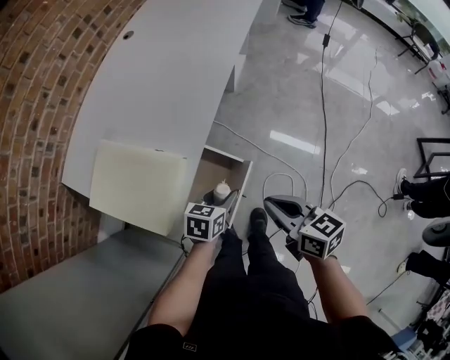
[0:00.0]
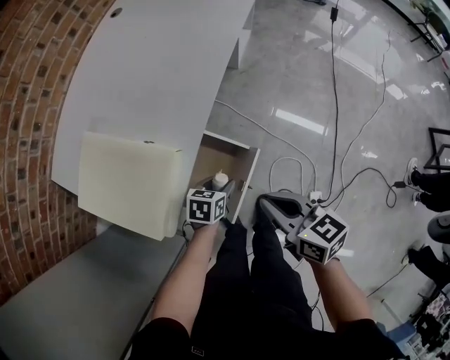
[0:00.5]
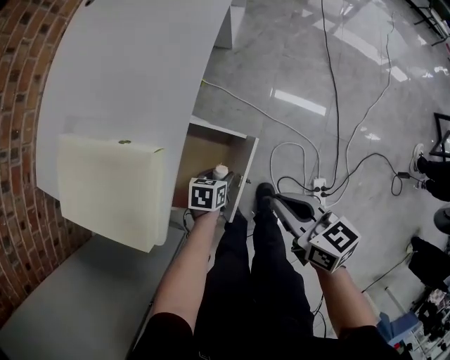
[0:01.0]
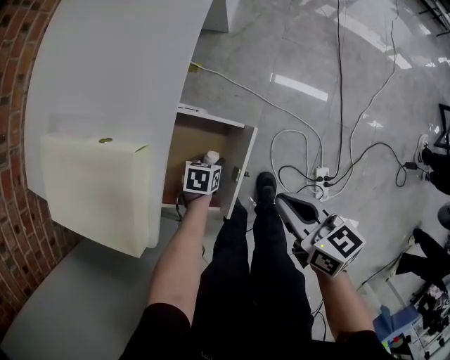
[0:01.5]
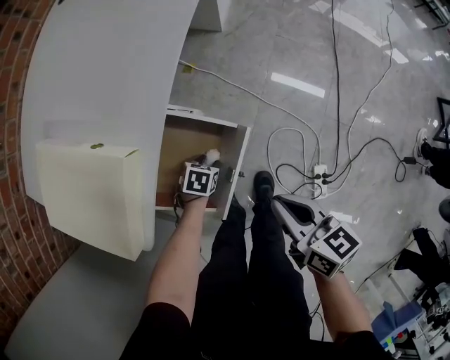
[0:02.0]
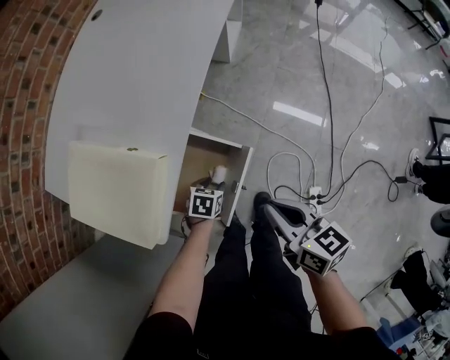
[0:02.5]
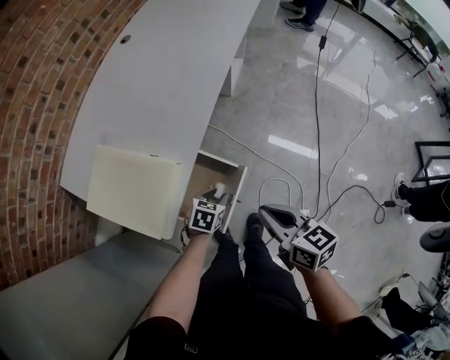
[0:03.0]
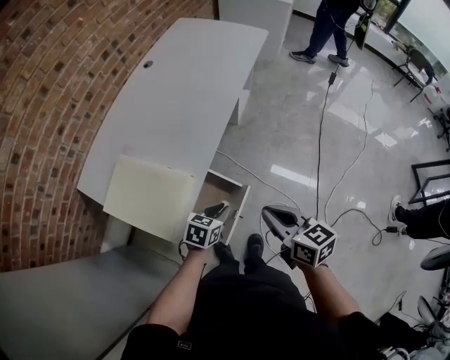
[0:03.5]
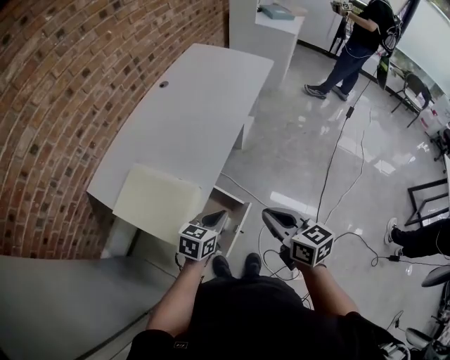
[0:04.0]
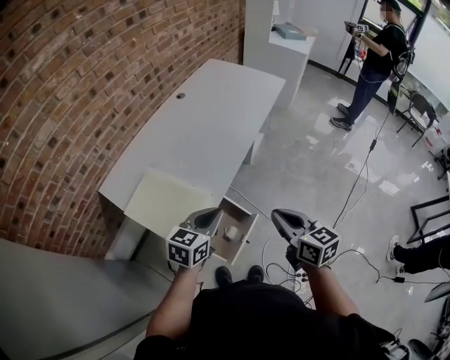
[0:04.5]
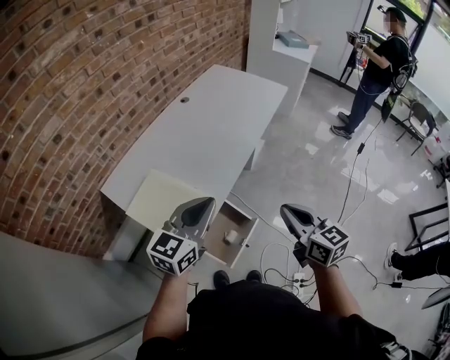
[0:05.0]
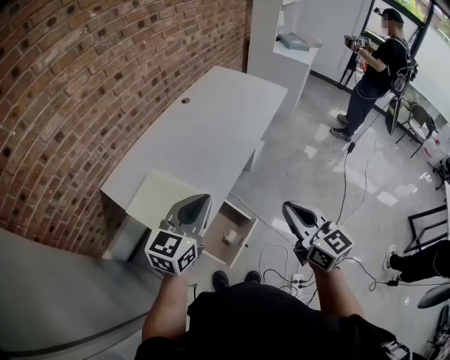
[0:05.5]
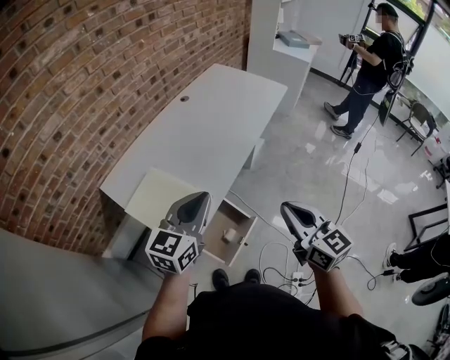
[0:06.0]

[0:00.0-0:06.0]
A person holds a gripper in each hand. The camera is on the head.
0:00.0 to 0:02.0: The left gripper shifts some 30 cm downward, and rotates roughly 30 degrees. The right gripper is displaced downward by about 15 cm.
0:02.0 to 0:04.0: The left gripper heads upward, covering roughly 40 cm, tilts its fingers roughly 40 degrees upward, and closes its fingers, while the right gripper moves upward, approximately 25 cm, and changes its angle by approximately 20 degrees.
0:04.0 to 0:06.0: The right gripper travels upward by some 10 cm, and rotates some 20 degrees. Meanwhile the left gripper travels upward by roughly 20 cm, and swivels roughly 30 degrees.

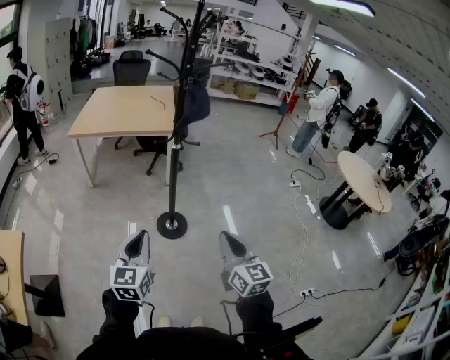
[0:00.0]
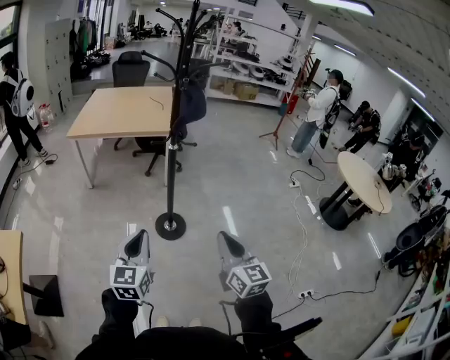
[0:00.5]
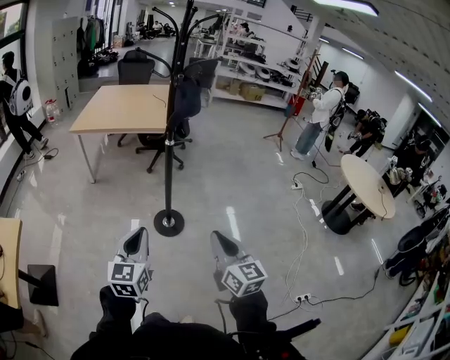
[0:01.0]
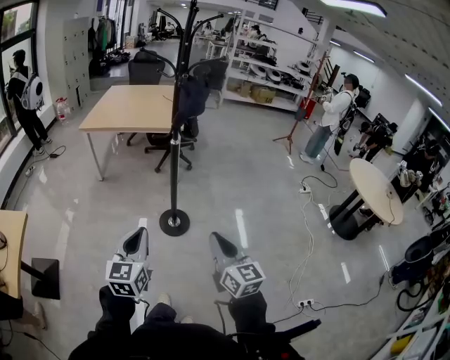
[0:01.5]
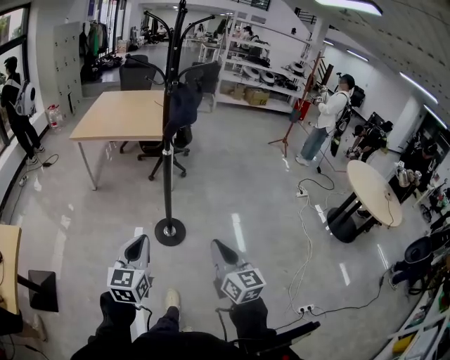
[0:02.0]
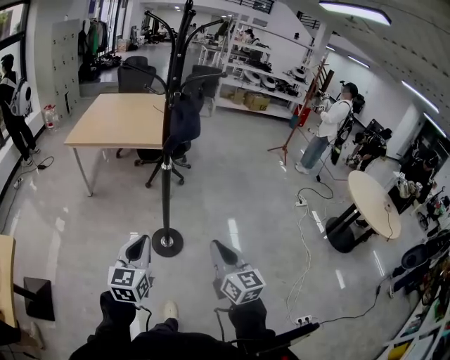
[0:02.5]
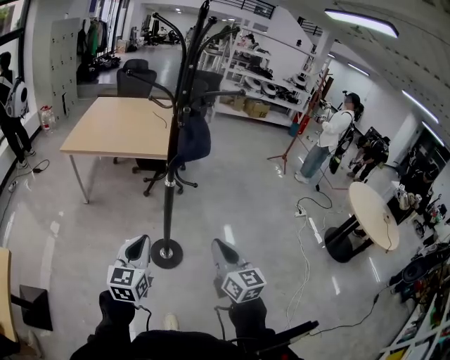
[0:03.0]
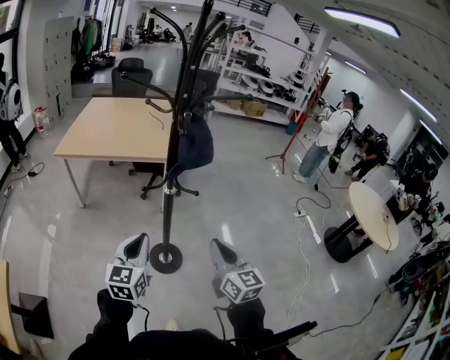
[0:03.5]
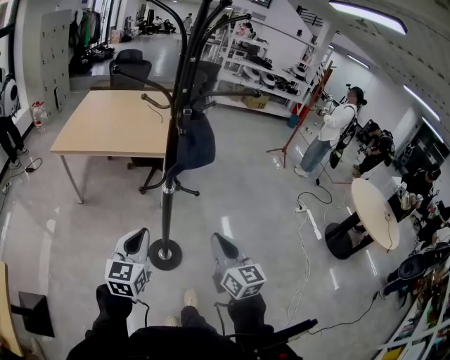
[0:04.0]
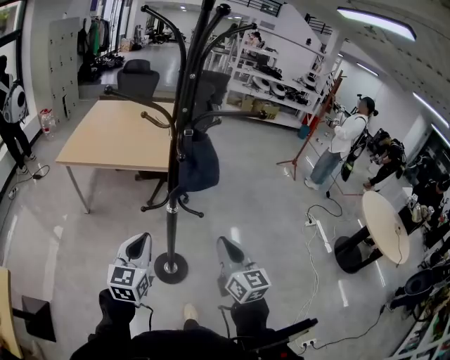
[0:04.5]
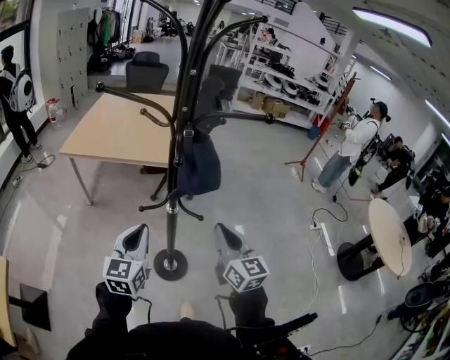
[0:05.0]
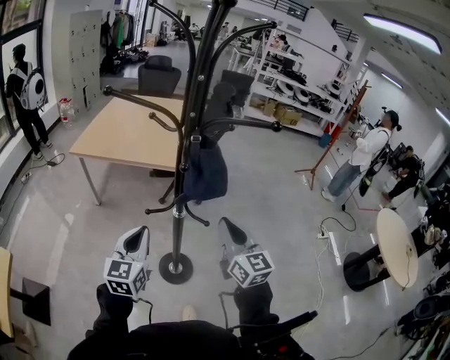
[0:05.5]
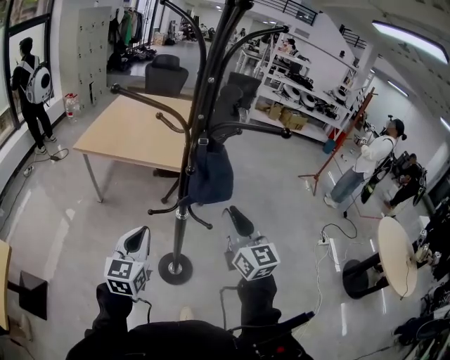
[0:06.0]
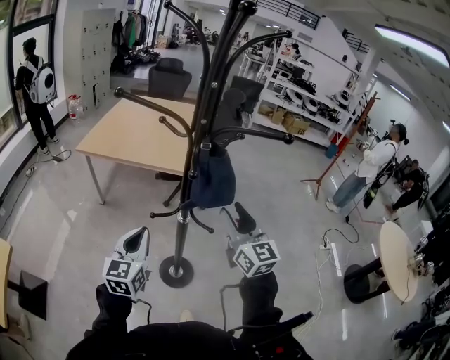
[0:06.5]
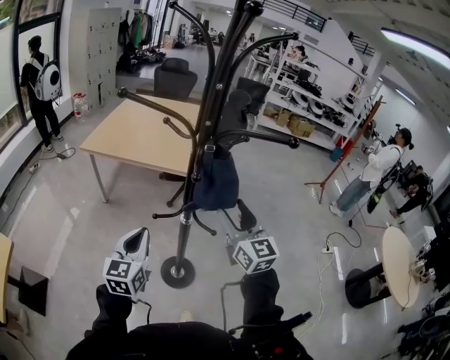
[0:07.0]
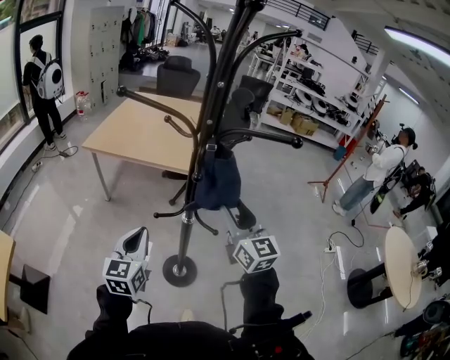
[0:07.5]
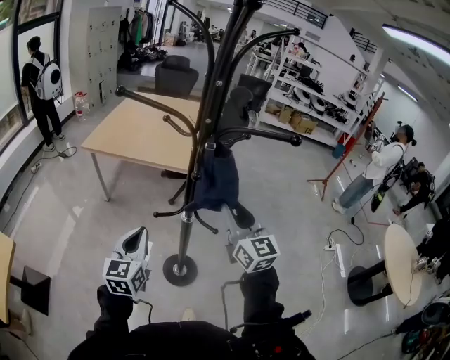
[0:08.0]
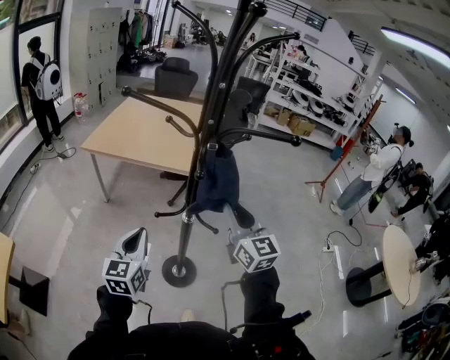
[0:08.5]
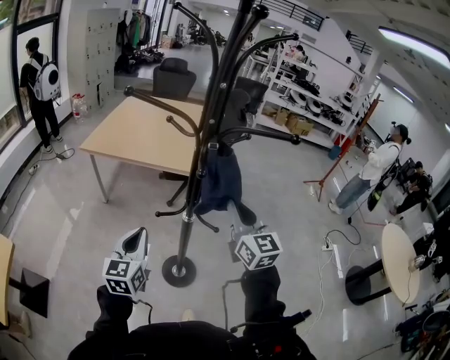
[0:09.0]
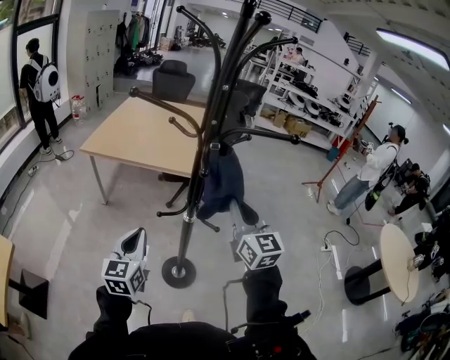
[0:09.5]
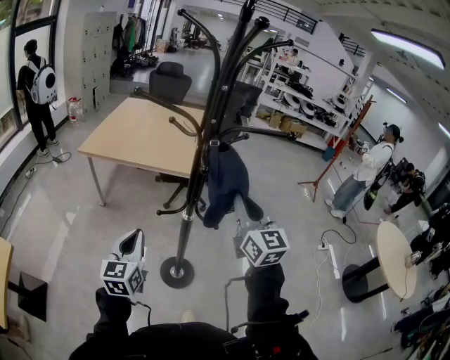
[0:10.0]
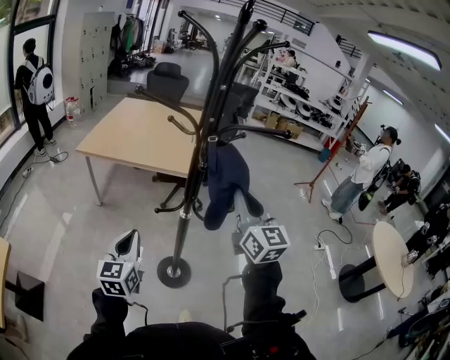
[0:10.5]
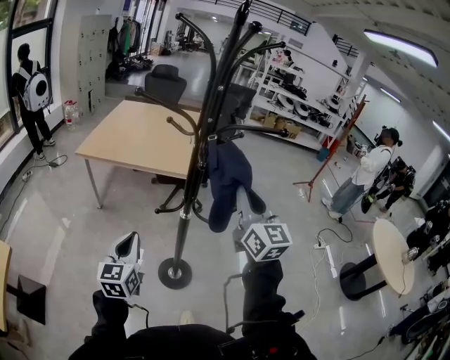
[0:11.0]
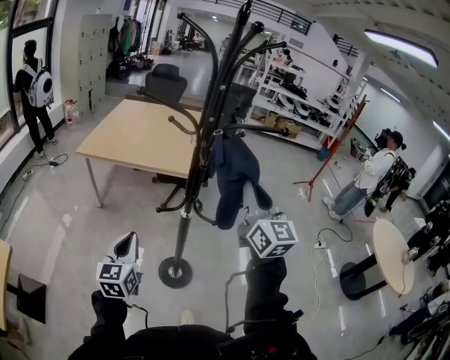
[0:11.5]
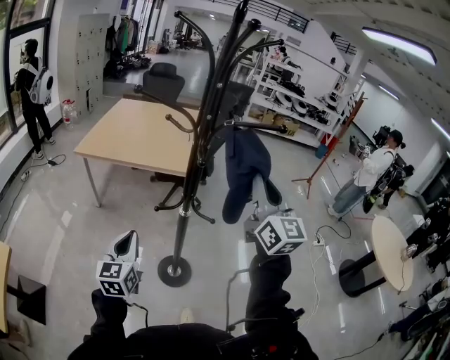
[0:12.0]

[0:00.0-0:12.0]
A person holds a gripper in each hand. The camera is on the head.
0:00.0 to 0:02.0: Both grippers travel together to the right, approximately 5 cm.
0:02.0 to 0:04.0: Both grippers move forward, approximately 25 cm.
0:04.0 to 0:06.0: The left gripper travels forward by approximately 10 cm. The right gripper moves forward and upward, approximately 20 cm.
0:06.0 to 0:08.0: The right gripper opens, then closes again.
0:08.0 to 0:10.0: The right gripper ends up some 5 cm from where it was.
0:10.0 to 0:12.0: The right gripper is displaced upward by roughly 10 cm.

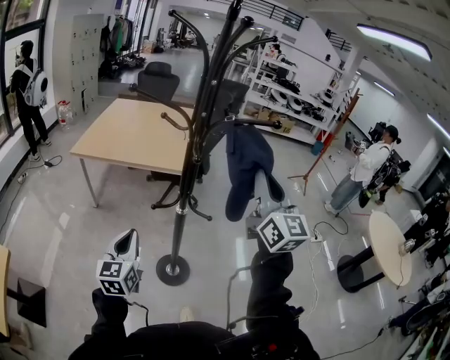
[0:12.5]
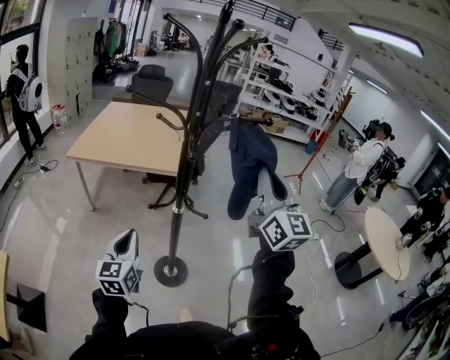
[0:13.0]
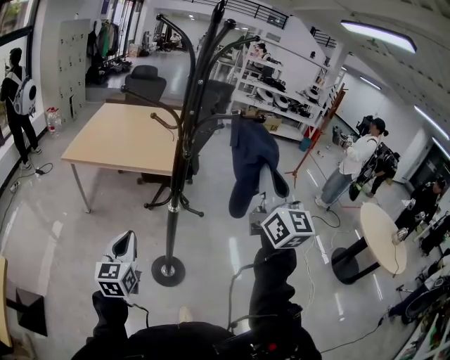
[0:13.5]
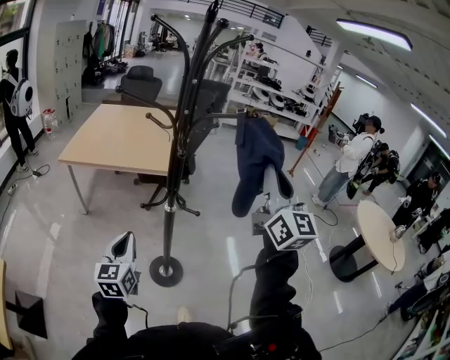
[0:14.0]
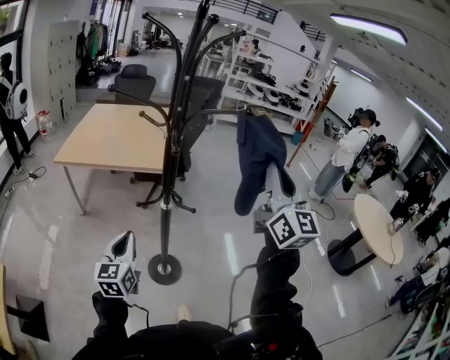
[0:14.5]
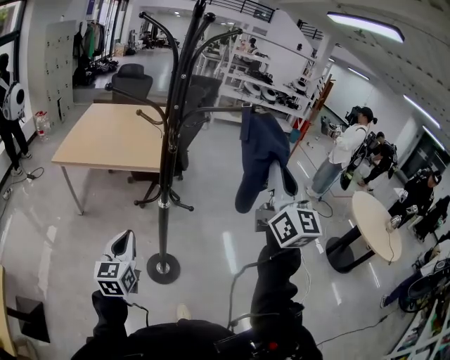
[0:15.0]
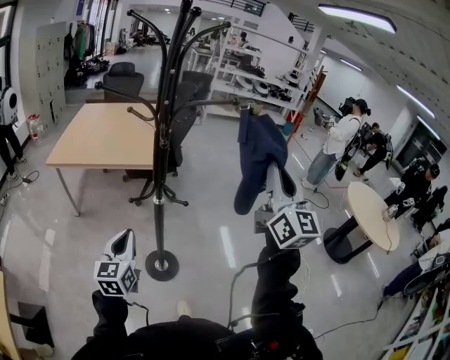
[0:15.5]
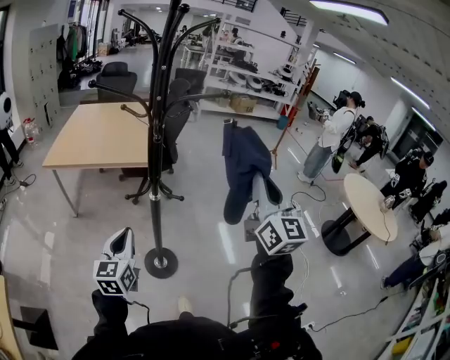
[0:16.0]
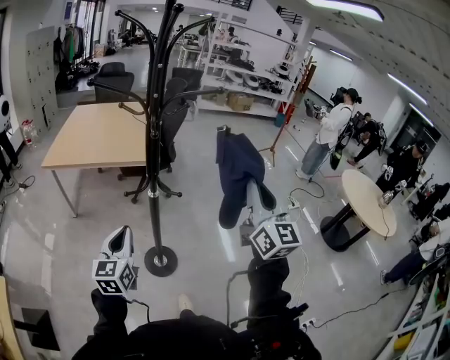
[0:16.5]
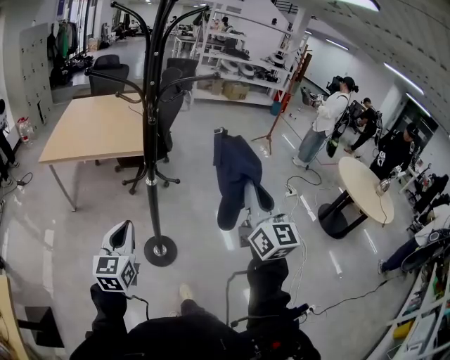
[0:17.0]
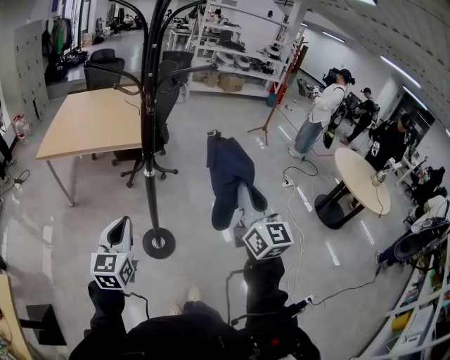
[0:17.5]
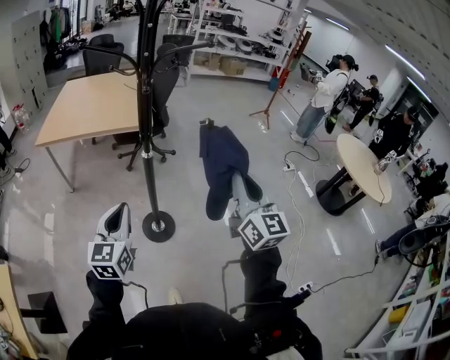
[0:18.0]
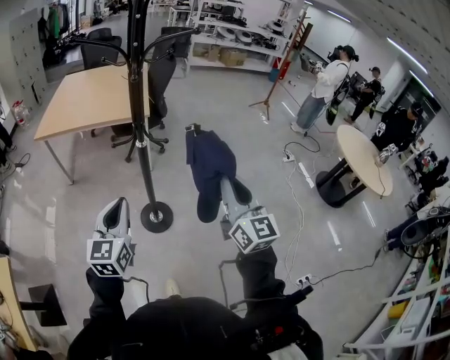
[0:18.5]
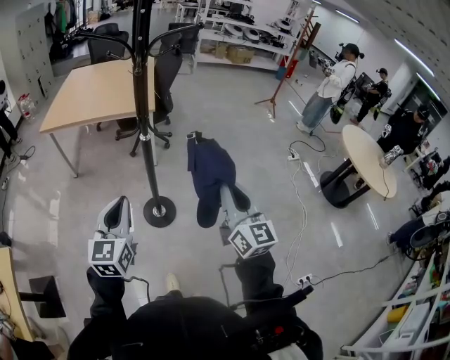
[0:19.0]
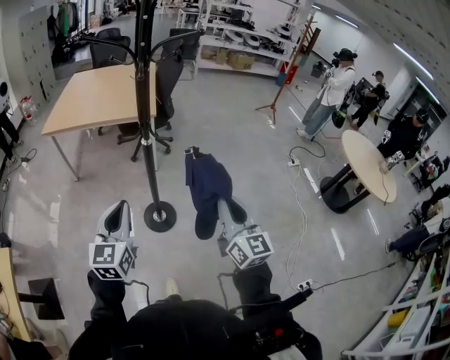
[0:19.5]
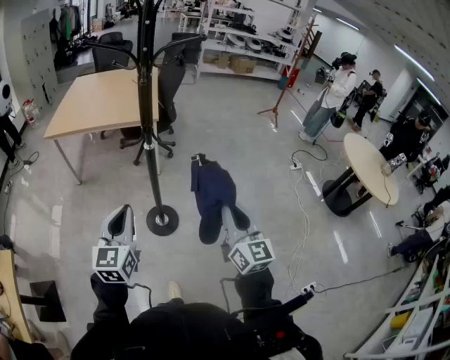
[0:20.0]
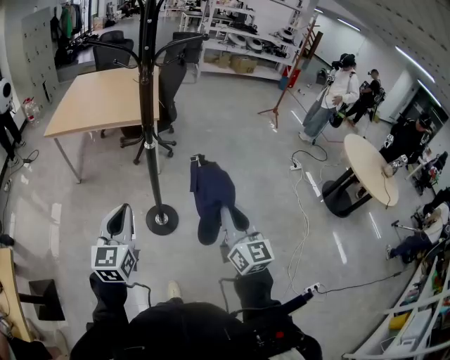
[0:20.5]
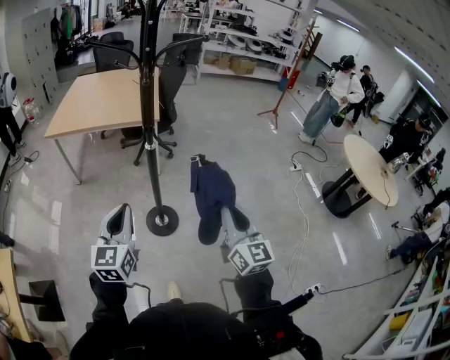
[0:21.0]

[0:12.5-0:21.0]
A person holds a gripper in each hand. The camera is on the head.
0:12.5 to 0:14.5: The right gripper goes about 10 cm backward and to the right.
0:14.5 to 0:16.5: The right gripper goes approximately 10 cm downward and backward.
0:16.5 to 0:19.0: The right gripper moves downward and backward, roughly 20 cm. Meanwhile the left gripper goes about 10 cm backward.
0:19.0 to 0:21.0: The grippers make only small movements.
